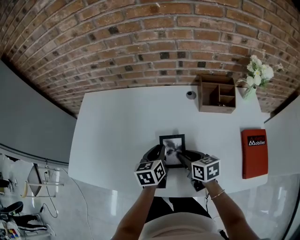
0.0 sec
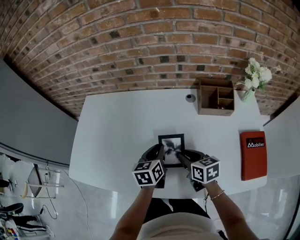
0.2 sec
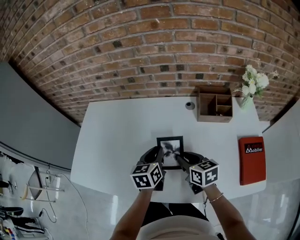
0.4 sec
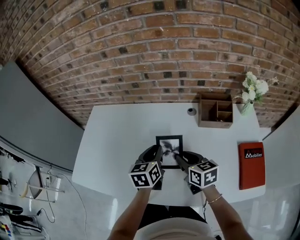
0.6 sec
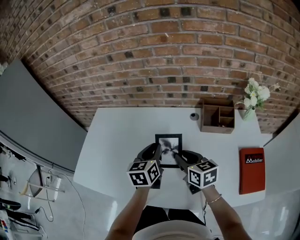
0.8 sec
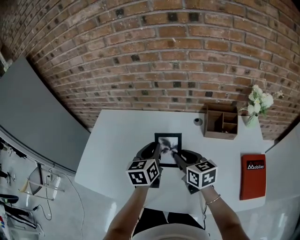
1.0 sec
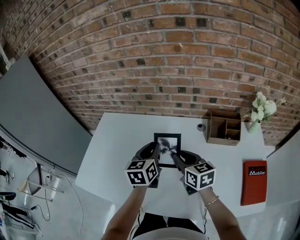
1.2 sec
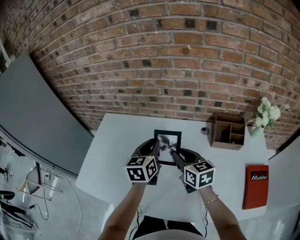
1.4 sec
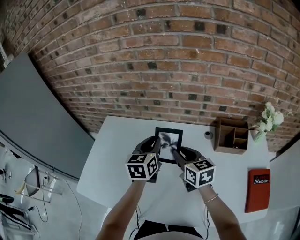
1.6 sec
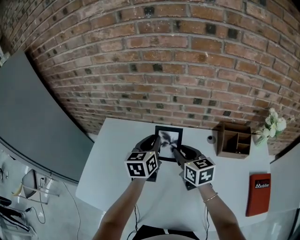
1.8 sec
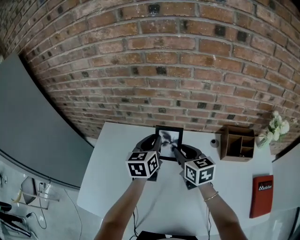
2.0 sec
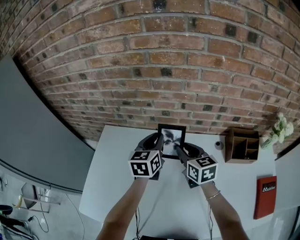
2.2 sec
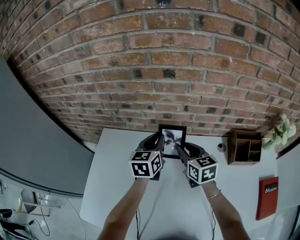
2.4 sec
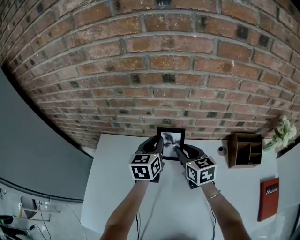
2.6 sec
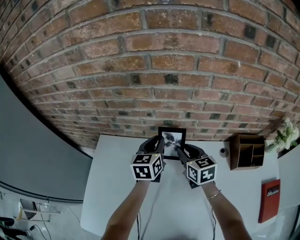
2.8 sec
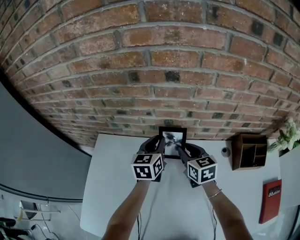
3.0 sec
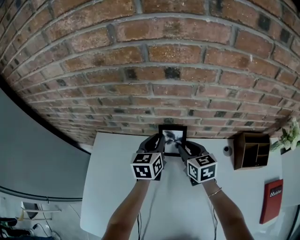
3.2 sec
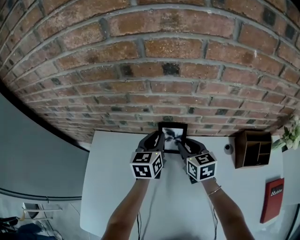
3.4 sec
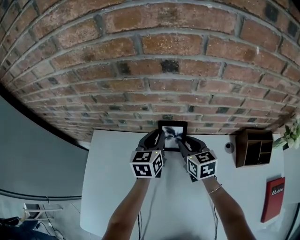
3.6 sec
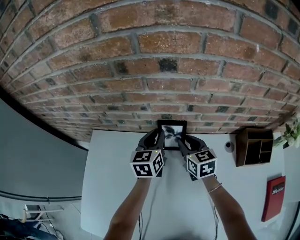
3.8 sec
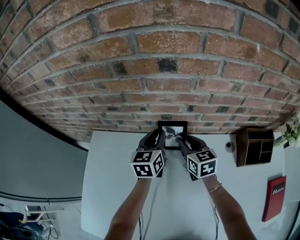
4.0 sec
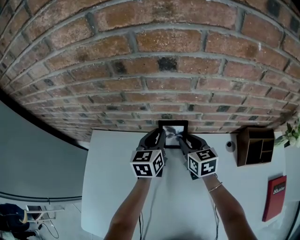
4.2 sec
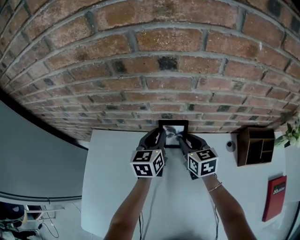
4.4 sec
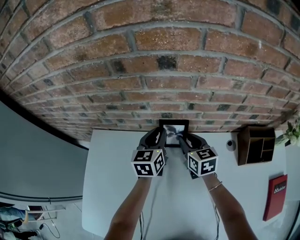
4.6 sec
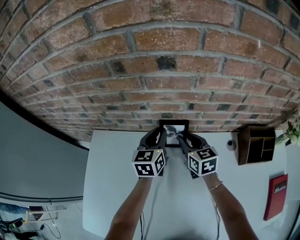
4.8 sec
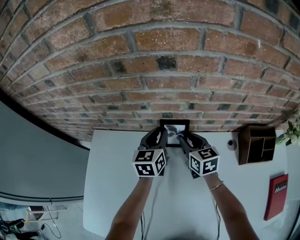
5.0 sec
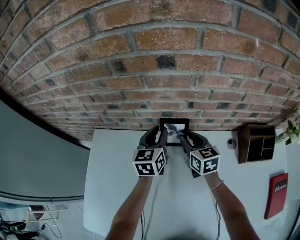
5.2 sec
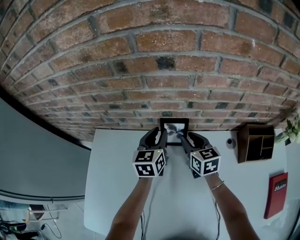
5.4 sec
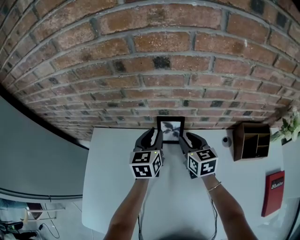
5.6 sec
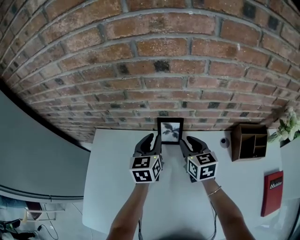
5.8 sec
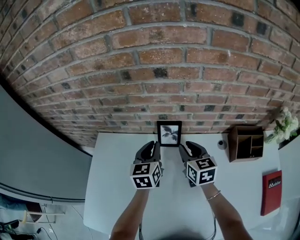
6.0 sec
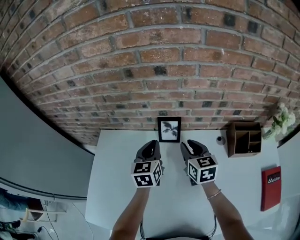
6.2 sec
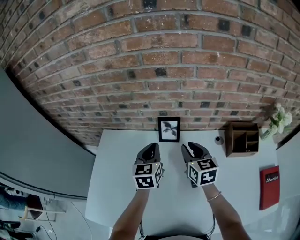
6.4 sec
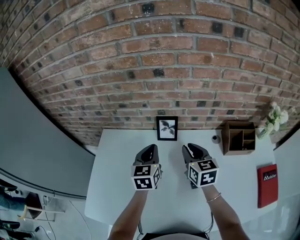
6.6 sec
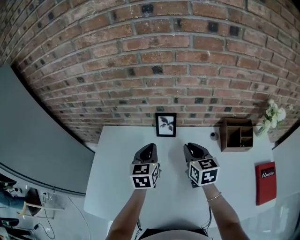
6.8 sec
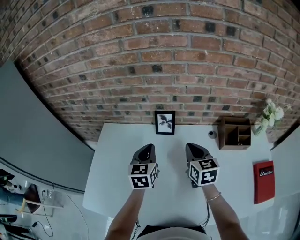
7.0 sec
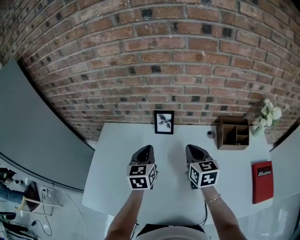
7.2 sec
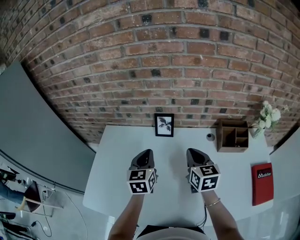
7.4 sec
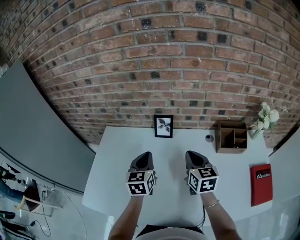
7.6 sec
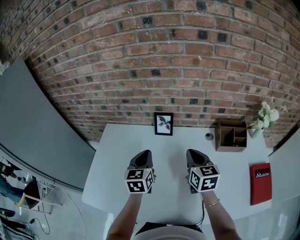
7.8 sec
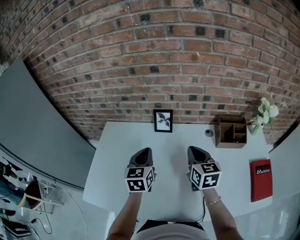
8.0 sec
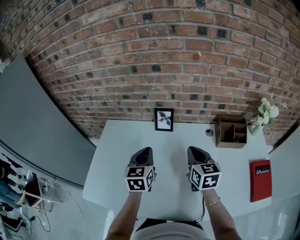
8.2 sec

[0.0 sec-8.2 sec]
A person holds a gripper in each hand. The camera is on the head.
0.0 sec to 1.6 sec: The left gripper shifts roughly 25 cm upward, forward and to the left. Meanwhile the right gripper travels forward, upward and to the left by about 25 cm, and rotates approximately 20 degrees.
1.6 sec to 3.2 sec: The left gripper travels forward and downward by about 20 cm; the right gripper moves forward, approximately 20 cm.
3.2 sec to 5.0 sec: The grippers move only a little.
5.0 sec to 6.6 sec: Both grippers travel together backward and upward, some 15 cm.
6.6 sec to 8.2 sec: Both grippers move backward, about 10 cm.

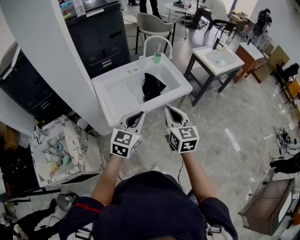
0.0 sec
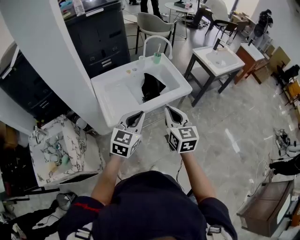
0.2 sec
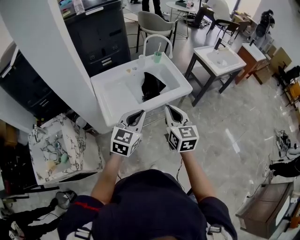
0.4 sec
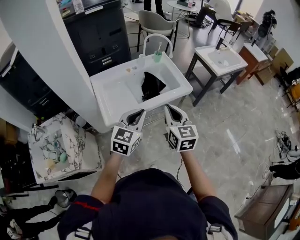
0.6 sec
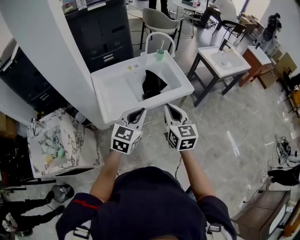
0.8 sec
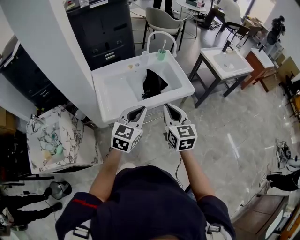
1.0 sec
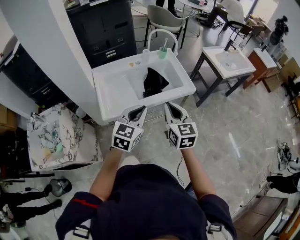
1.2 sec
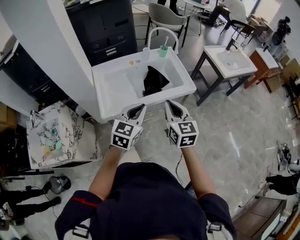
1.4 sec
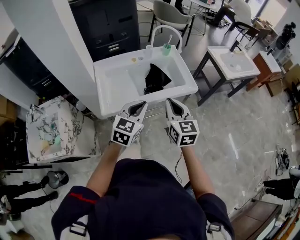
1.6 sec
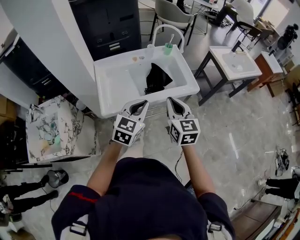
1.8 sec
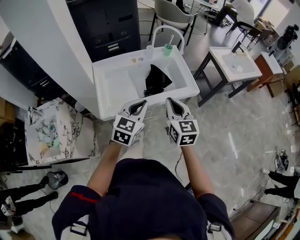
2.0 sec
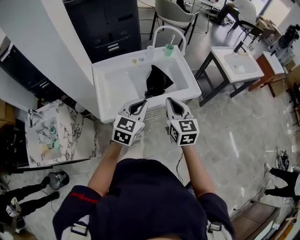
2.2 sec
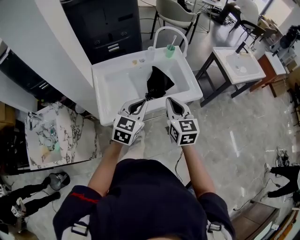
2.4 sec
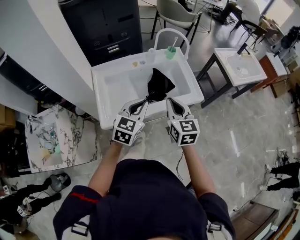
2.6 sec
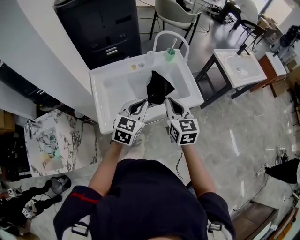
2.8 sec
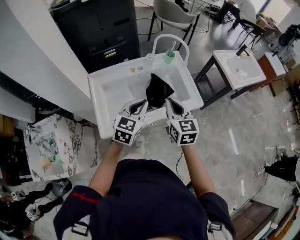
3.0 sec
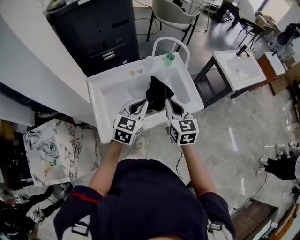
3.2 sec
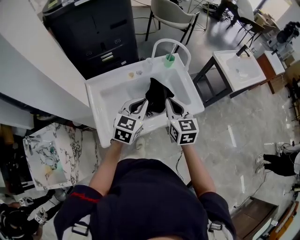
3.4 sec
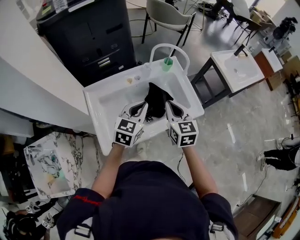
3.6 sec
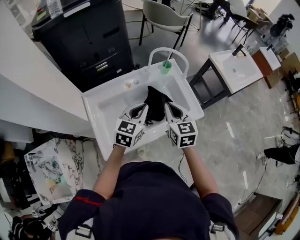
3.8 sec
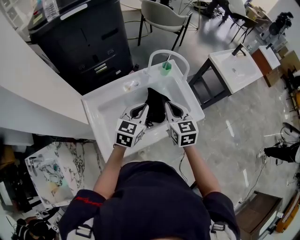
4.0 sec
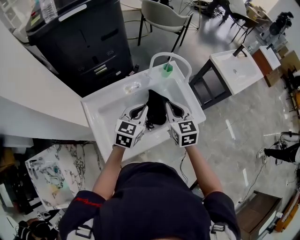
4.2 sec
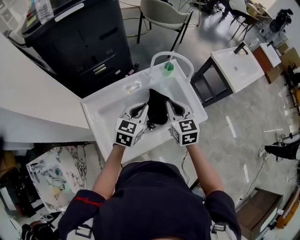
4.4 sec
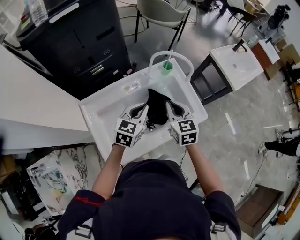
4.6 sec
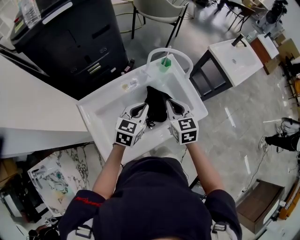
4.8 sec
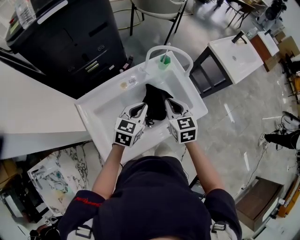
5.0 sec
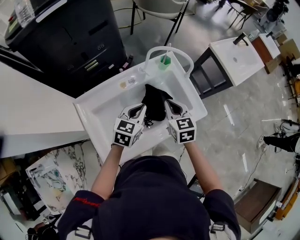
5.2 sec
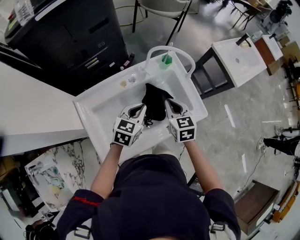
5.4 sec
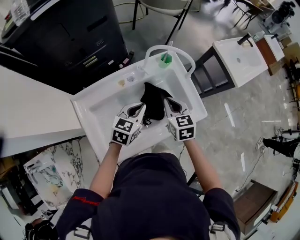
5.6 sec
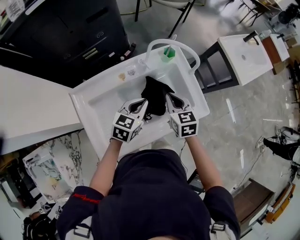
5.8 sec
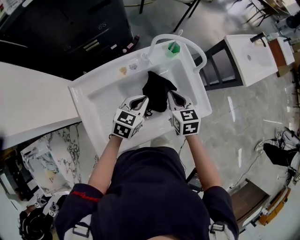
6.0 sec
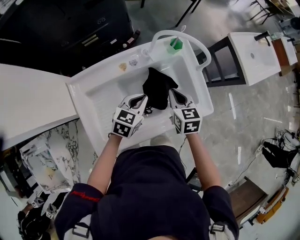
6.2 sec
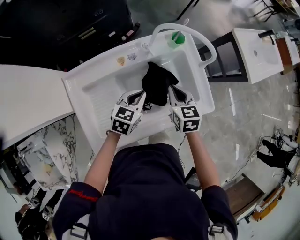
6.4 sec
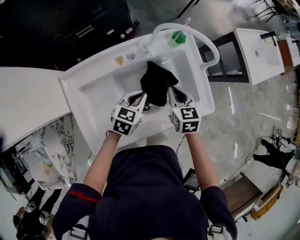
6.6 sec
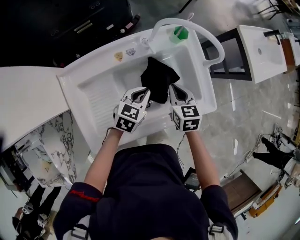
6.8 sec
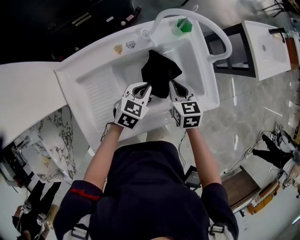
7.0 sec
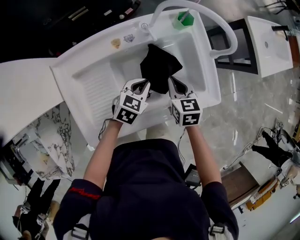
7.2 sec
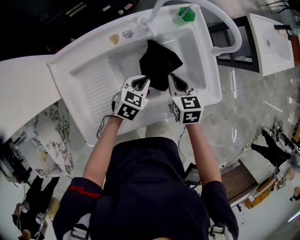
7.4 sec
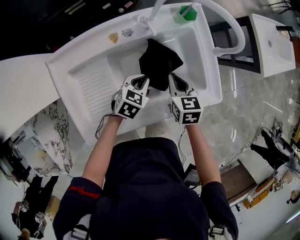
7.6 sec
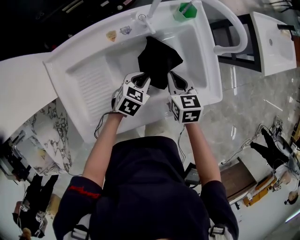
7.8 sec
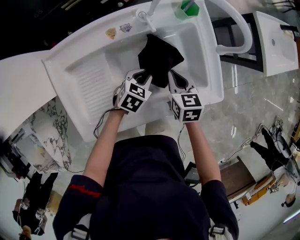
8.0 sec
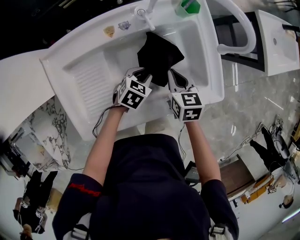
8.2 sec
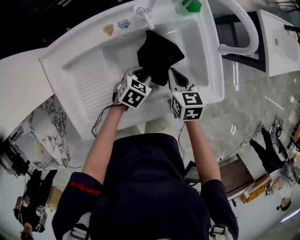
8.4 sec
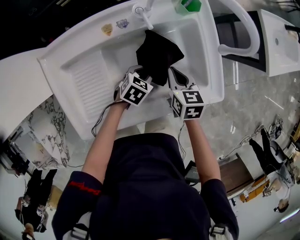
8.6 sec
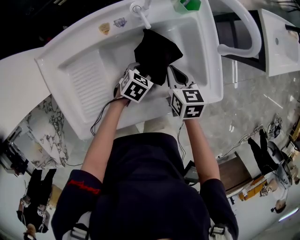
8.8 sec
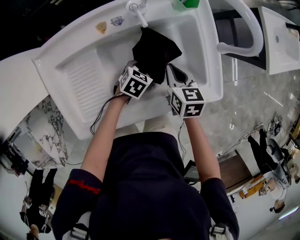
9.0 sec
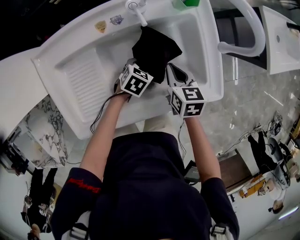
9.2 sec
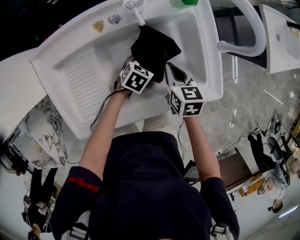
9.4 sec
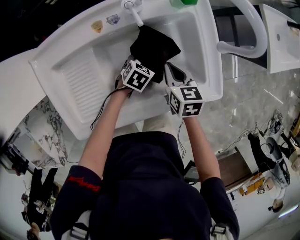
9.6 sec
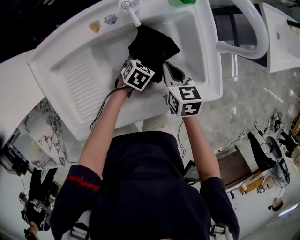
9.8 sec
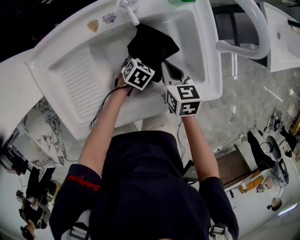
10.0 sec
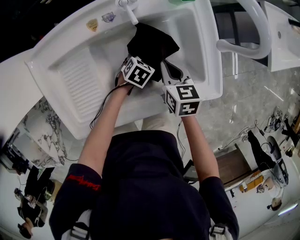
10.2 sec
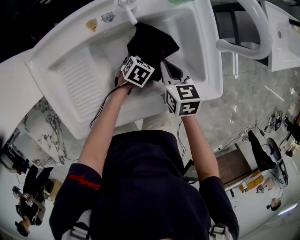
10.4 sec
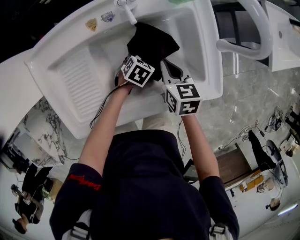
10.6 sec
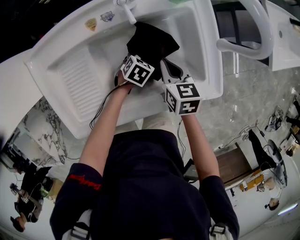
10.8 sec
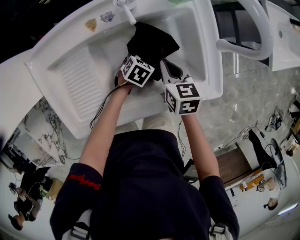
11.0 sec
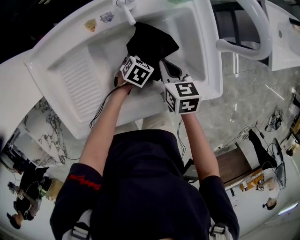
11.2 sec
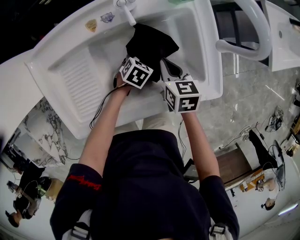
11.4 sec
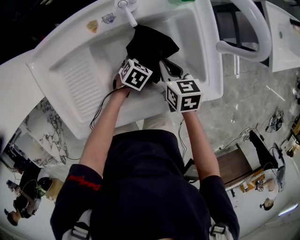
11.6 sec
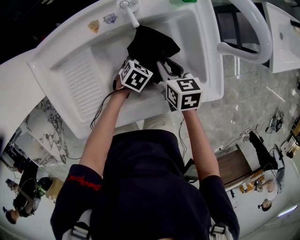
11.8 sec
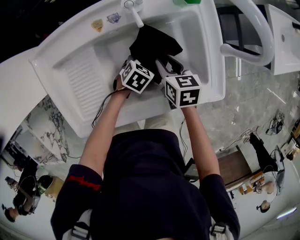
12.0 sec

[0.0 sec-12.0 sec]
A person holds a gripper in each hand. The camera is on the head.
0.0 sec to 1.6 sec: Both grippers move forward, some 5 cm.
1.6 sec to 3.0 sec: Both grippers travel together forward, roughly 15 cm.
3.0 sec to 4.4 sec: Both grippers move forward, approximately 15 cm.
4.4 sec to 6.0 sec: Both grippers travel together downward, approximately 10 cm.
6.0 sec to 7.6 sec: Both grippers travel together downward, about 15 cm.
7.6 sec to 9.0 sec: The left gripper shifts about 10 cm downward, and opens up.
9.0 sec to 10.4 sec: The left gripper ends up about 5 cm from where it was.
10.4 sec to 12.0 sec: The right gripper opens its fingers.

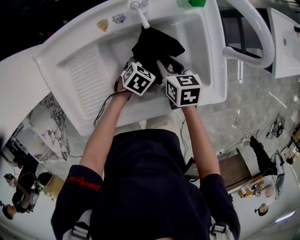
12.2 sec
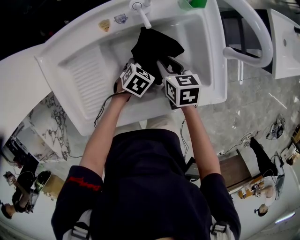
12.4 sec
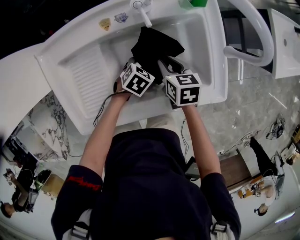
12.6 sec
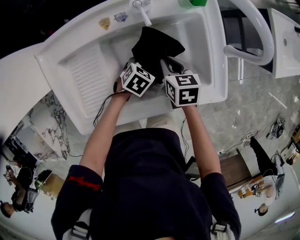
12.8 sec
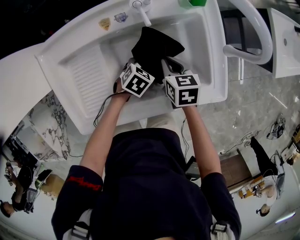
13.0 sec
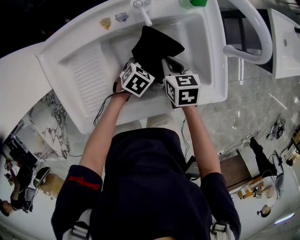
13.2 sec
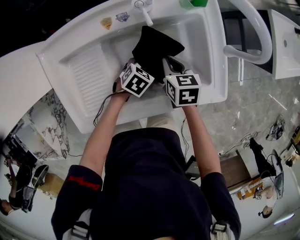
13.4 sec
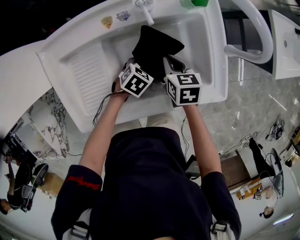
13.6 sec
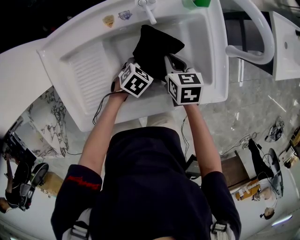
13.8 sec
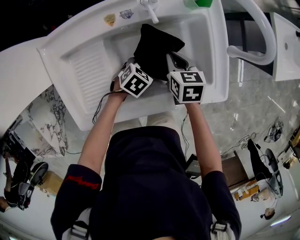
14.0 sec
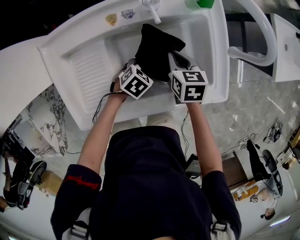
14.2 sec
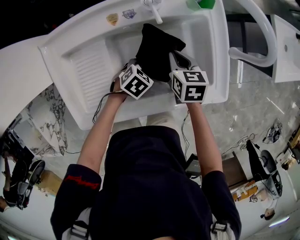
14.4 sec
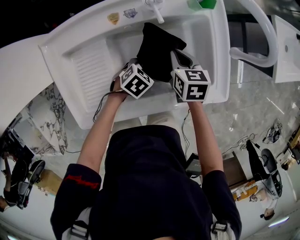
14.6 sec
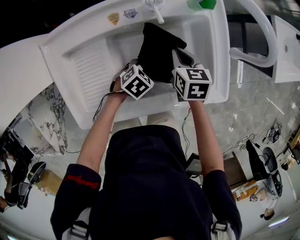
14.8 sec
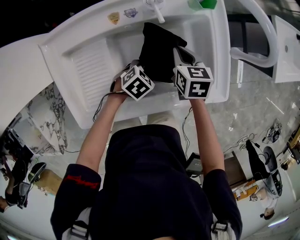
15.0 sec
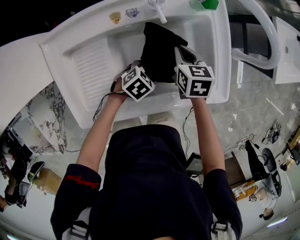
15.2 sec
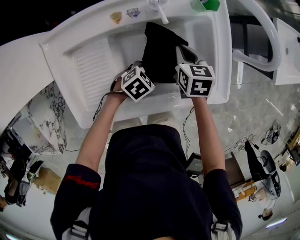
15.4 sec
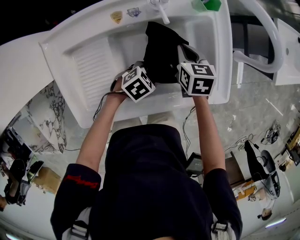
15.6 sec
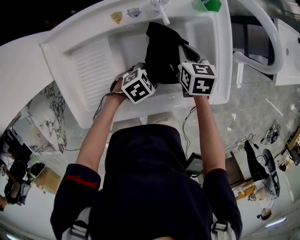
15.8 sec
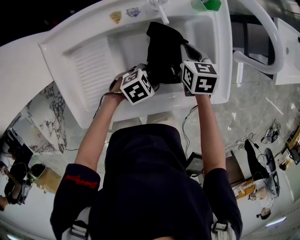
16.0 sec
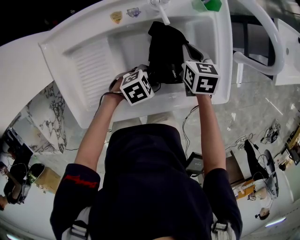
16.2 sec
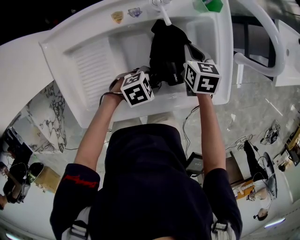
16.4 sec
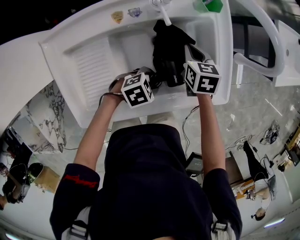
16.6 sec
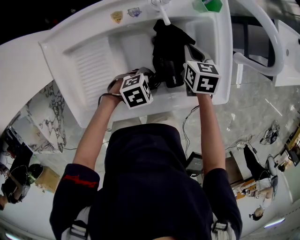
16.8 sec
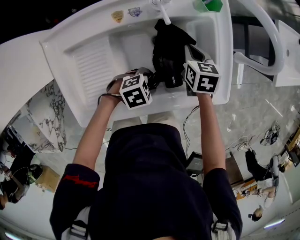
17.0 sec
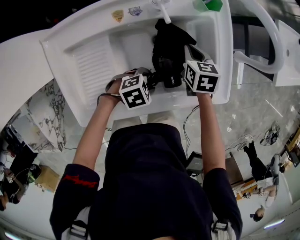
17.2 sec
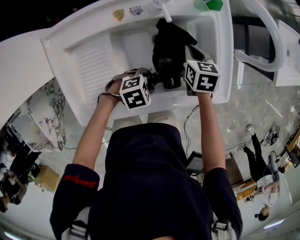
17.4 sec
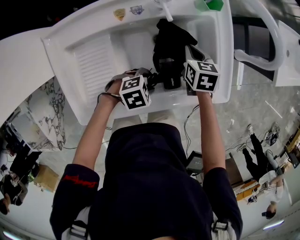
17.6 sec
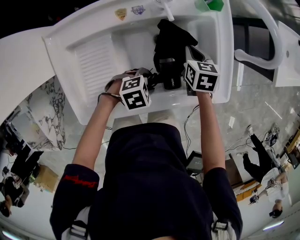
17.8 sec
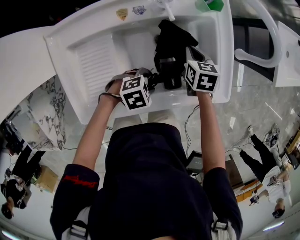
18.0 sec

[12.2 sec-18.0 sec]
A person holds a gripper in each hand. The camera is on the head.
12.2 sec to 13.6 sec: The right gripper closes its fingers.
13.6 sec to 15.0 sec: The grippers stay close to where they were, moving slightly.
15.0 sec to 16.6 sec: The left gripper moves about 5 cm, and swivels some 20 degrees.
16.6 sec to 18.0 sec: There are only small adjustments of the grippers.
